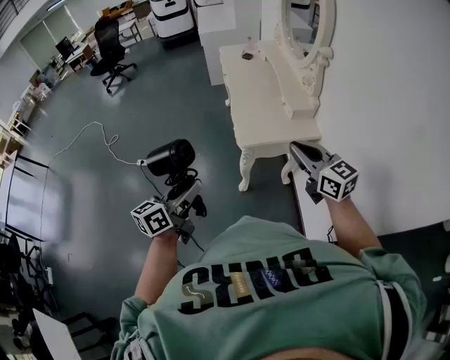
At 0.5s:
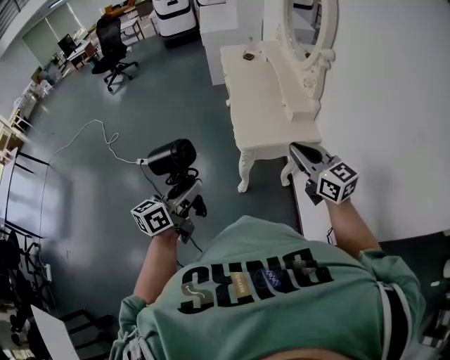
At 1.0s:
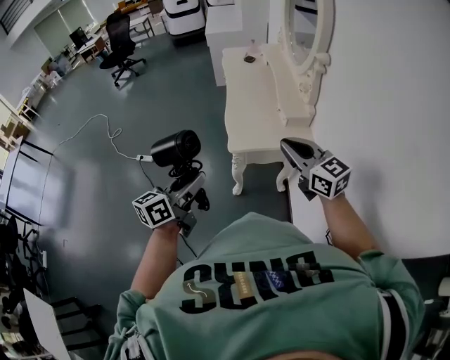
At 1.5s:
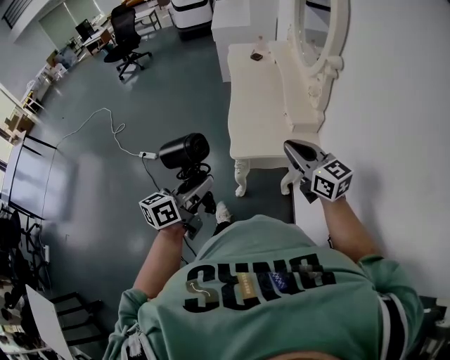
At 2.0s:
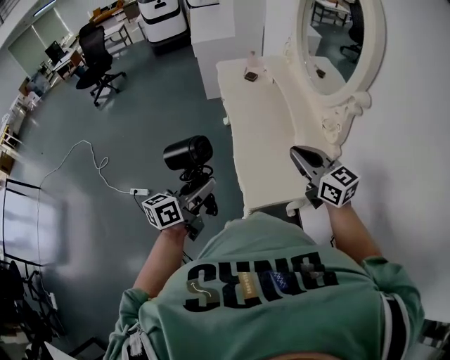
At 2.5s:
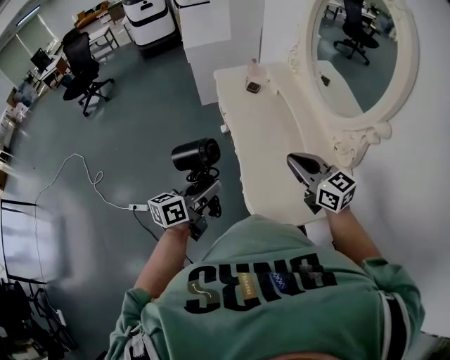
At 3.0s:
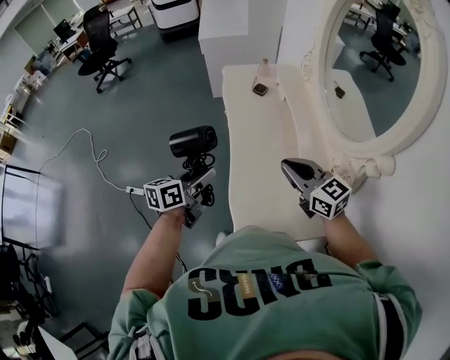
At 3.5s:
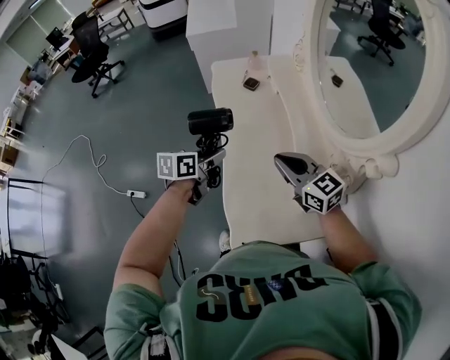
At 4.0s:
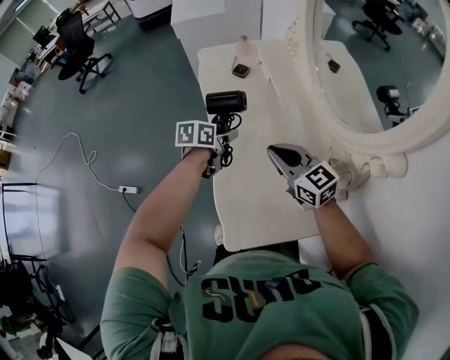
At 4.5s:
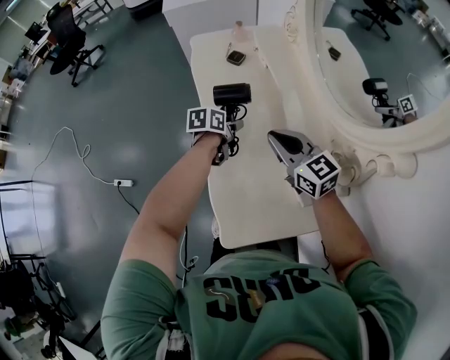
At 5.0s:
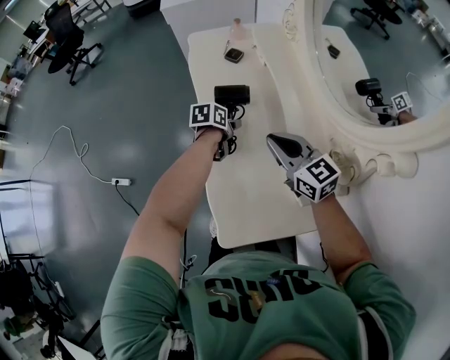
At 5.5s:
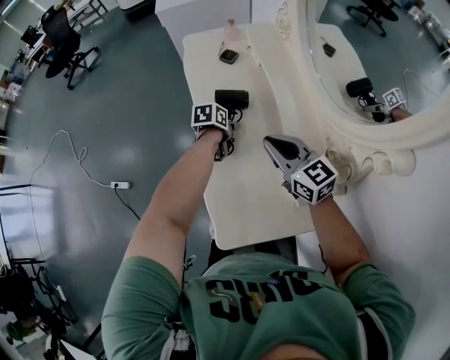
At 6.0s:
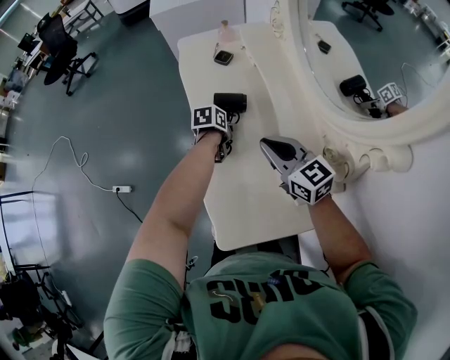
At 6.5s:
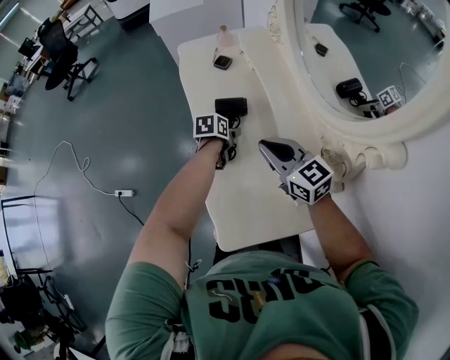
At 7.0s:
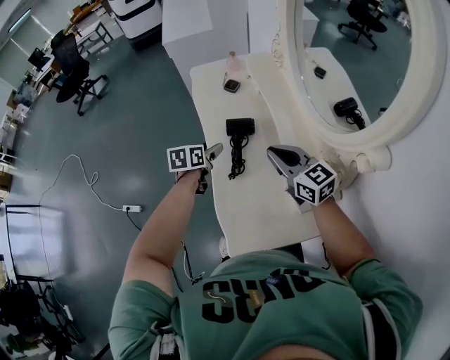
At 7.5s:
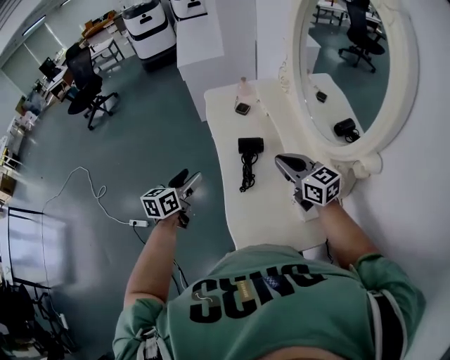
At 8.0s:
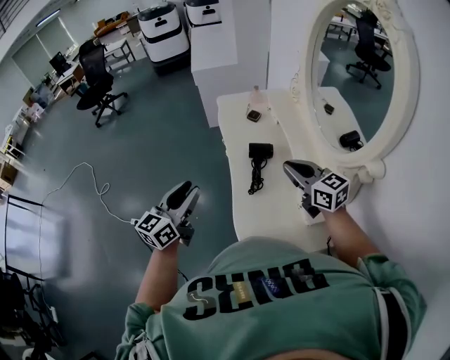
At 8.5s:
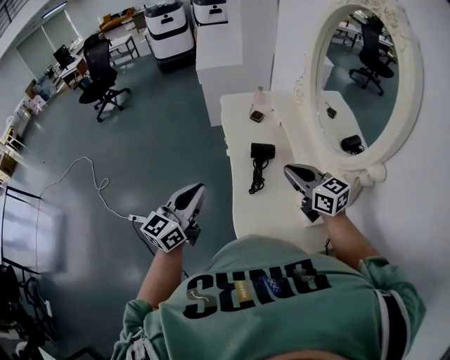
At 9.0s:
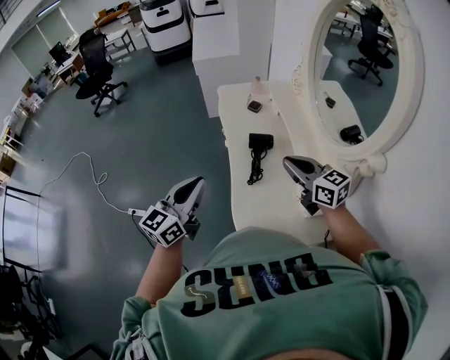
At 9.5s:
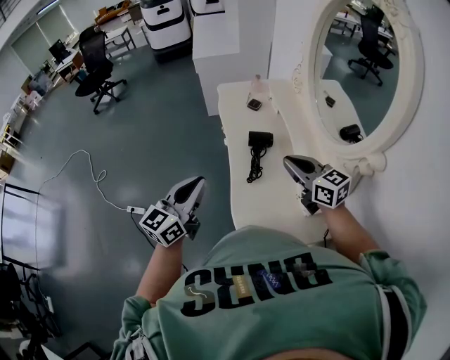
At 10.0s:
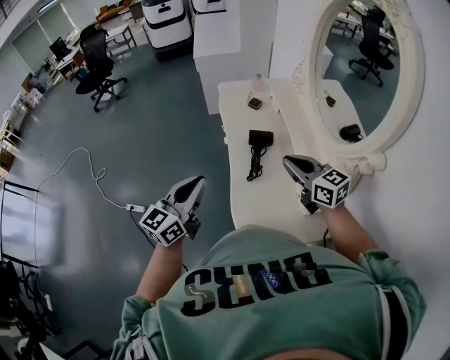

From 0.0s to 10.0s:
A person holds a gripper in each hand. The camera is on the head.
From 0.0s to 2.0s: Both grippers travel together forward, approximately 35 cm.
From 2.0s to 4.0s: The right gripper travels forward and downward by approximately 25 cm. The left gripper travels forward and downward by roughly 40 cm, and points its fingers some 30 degrees further downward.
From 4.0s to 6.0s: The left gripper shifts roughly 15 cm downward.
From 6.0s to 8.0s: The left gripper is displaced upward, to the left and backward by about 50 cm, tips its fingers upward by some 50 degrees, and opens and closes again, while the right gripper heads upward, covering about 15 cm.
From 8.0s to 10.0s: The left gripper shifts by approximately 5 cm, and closes.

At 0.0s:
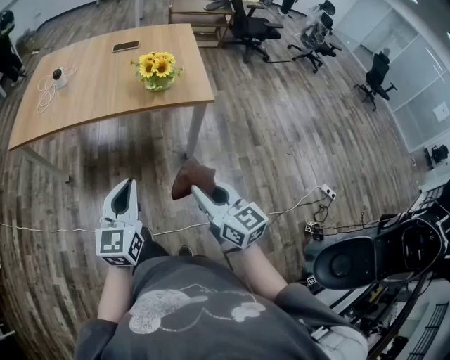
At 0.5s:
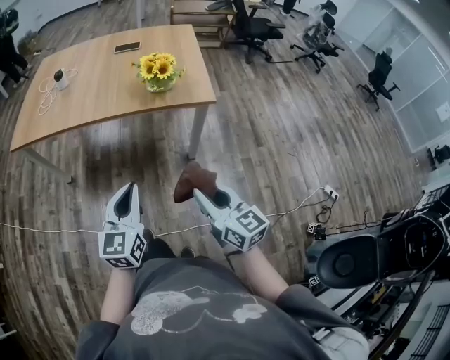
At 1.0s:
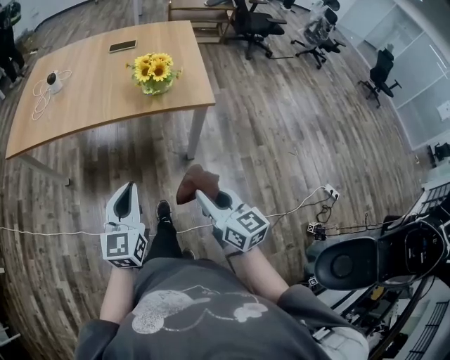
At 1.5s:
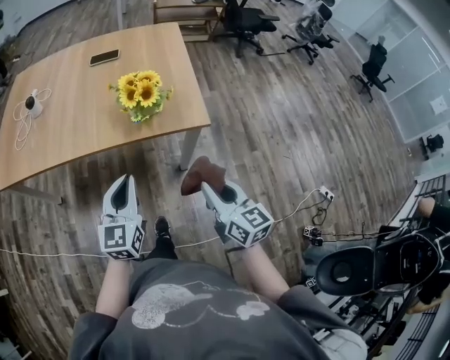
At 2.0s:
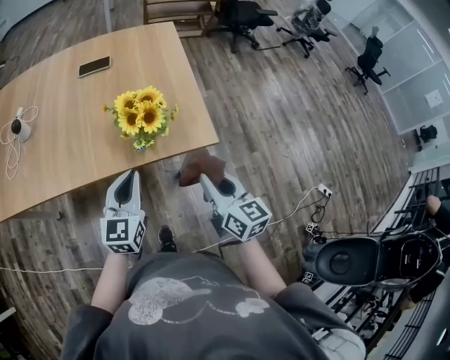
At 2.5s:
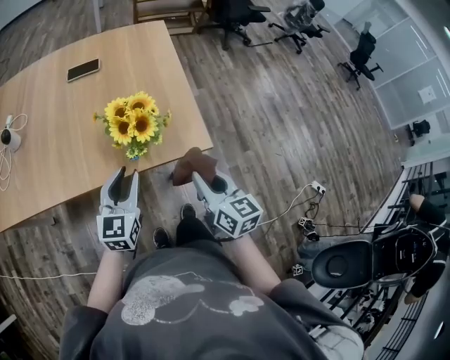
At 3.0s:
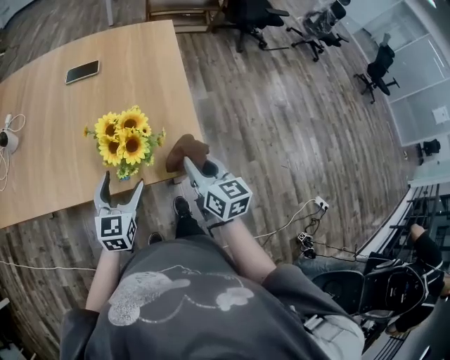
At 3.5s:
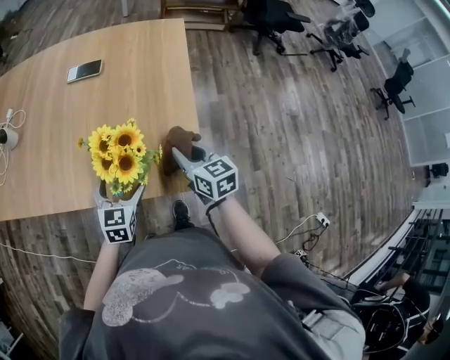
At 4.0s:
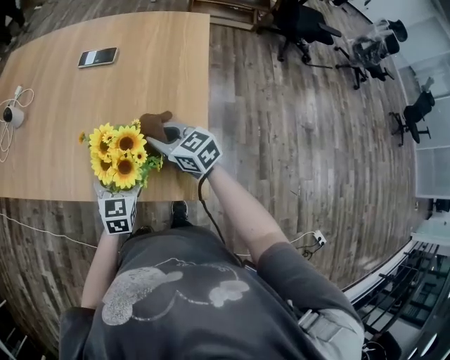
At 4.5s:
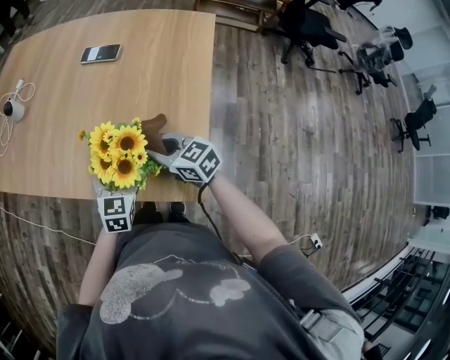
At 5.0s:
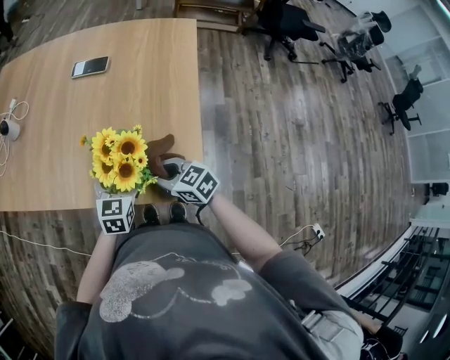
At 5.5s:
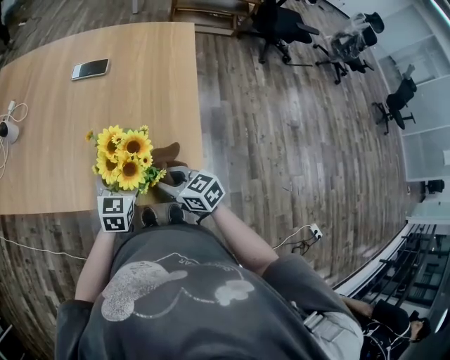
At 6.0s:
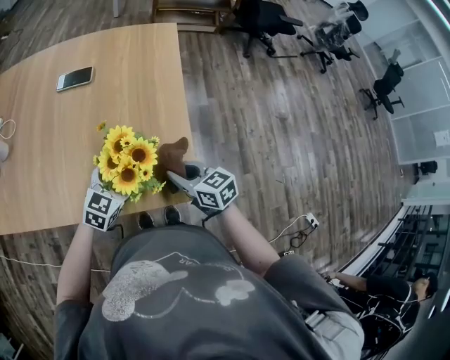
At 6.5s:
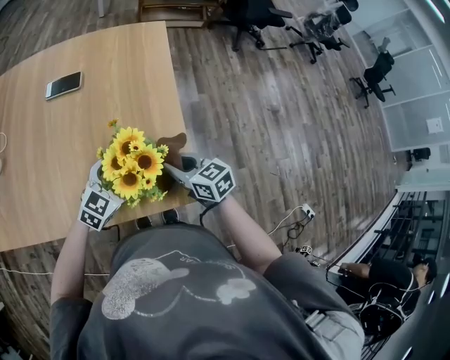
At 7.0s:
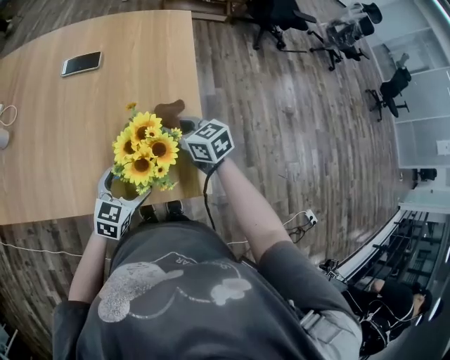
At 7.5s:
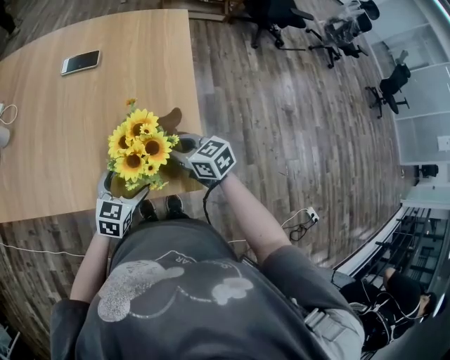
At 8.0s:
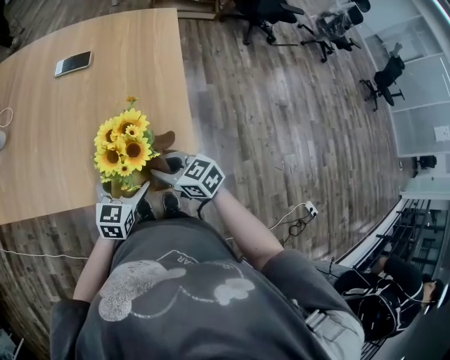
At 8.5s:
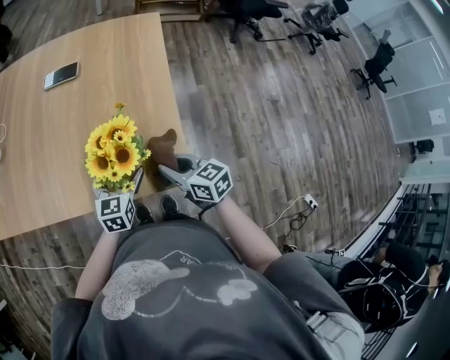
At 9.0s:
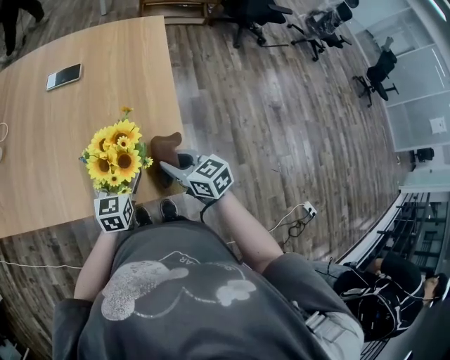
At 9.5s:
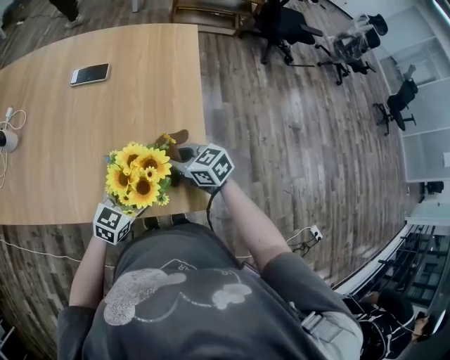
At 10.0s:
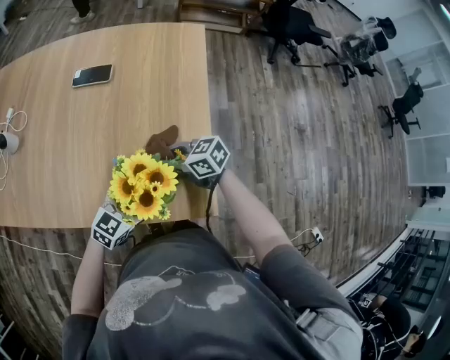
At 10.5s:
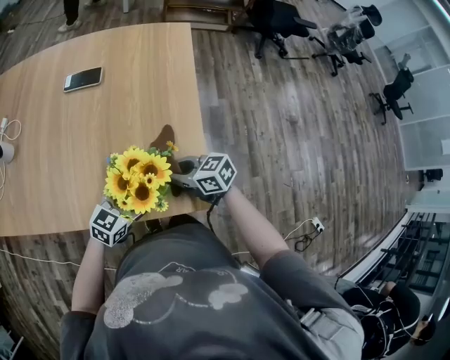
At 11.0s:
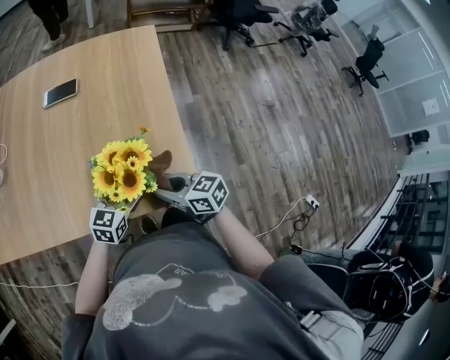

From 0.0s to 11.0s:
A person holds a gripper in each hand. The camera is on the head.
From 0.0s to 2.0s: Both grippers move forward, about 30 cm.
From 2.0s to 3.5s: The right gripper travels forward by roughly 25 cm, and swivels about 20 degrees. The left gripper goes approximately 20 cm forward and downward, changes its angle by some 20 degrees, and opens up.
From 3.5s to 5.5s: The right gripper shifts roughly 10 cm to the left, travels forward and back again, some 10 cm each way, and changes its angle by roughly 30 degrees.
From 5.5s to 7.5s: The left gripper ends up roughly 5 cm from where it was.
From 7.5s to 9.0s: The left gripper shifts by approximately 5 cm. The right gripper moves about 5 cm.

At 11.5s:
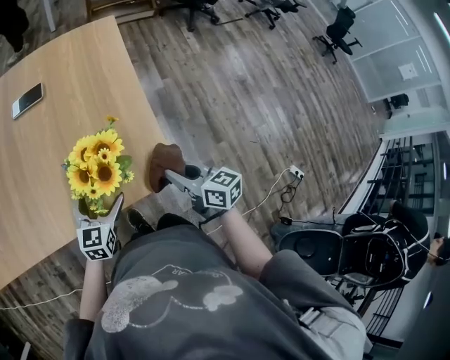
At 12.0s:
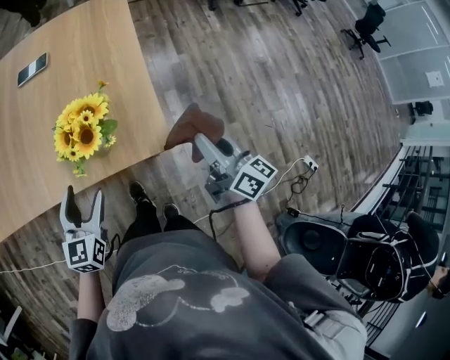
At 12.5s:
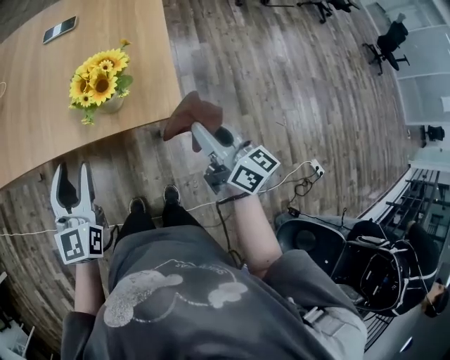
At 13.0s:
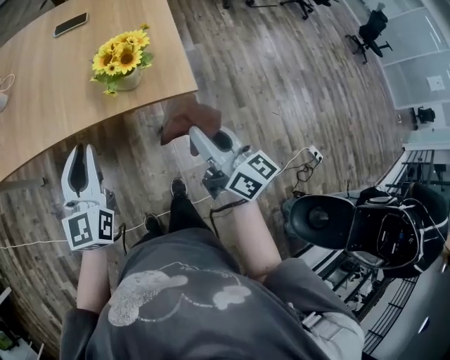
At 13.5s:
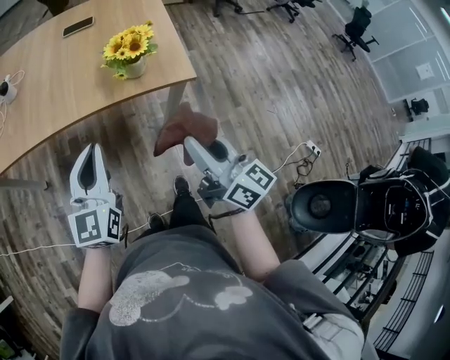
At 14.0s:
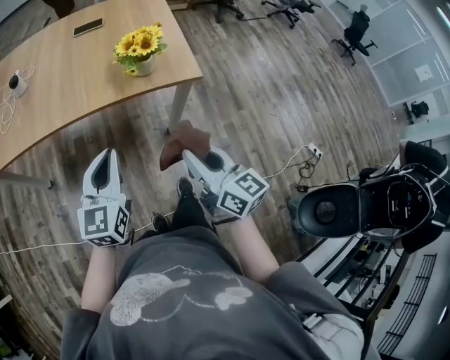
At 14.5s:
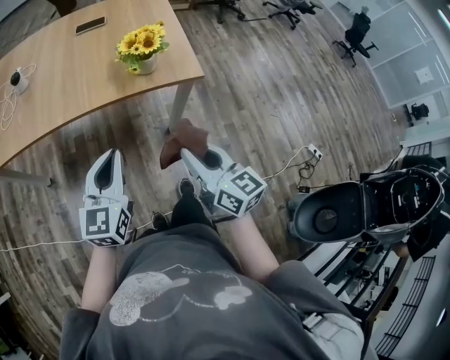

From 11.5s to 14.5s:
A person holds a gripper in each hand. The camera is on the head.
From 11.5s to 13.0s: The left gripper heads upward, backward and to the left, covering roughly 30 cm, swivels about 30 degrees, and closes. The right gripper shifts about 25 cm backward and upward, and turns by some 20 degrees.
From 13.0s to 14.5s: The left gripper is displaced backward by roughly 15 cm; the right gripper shifts some 20 cm backward and to the left.

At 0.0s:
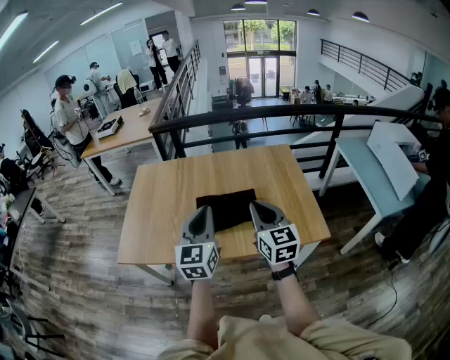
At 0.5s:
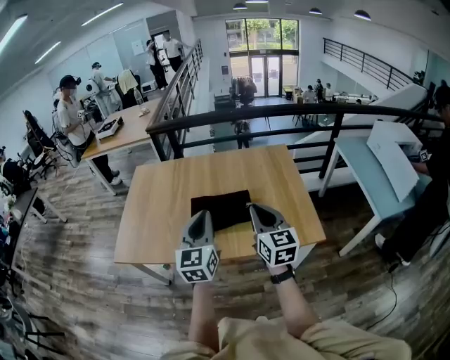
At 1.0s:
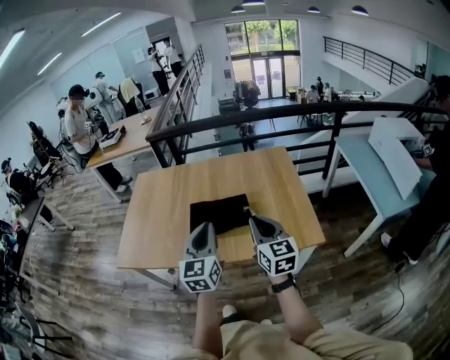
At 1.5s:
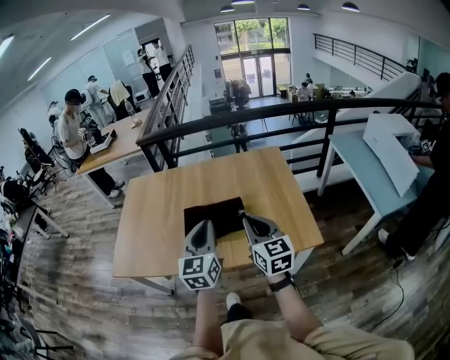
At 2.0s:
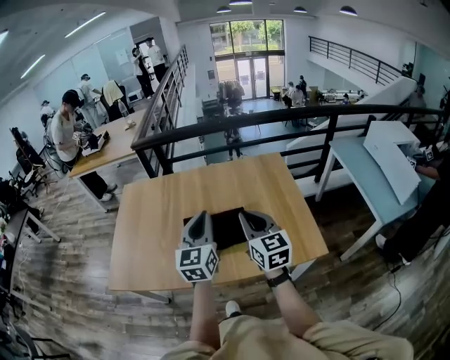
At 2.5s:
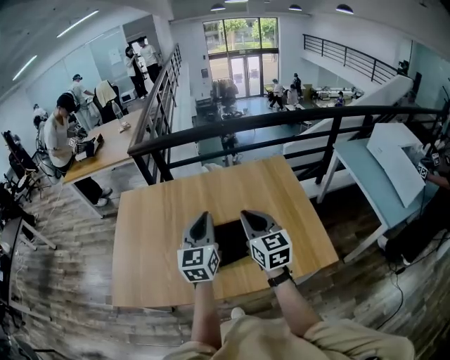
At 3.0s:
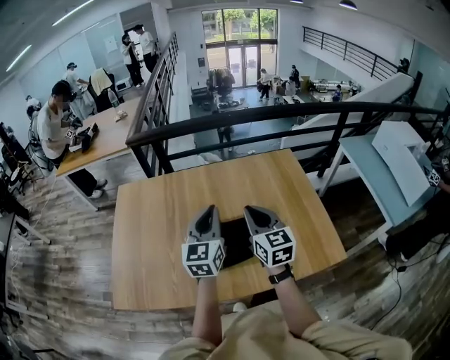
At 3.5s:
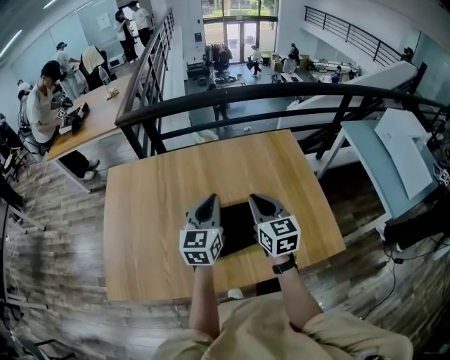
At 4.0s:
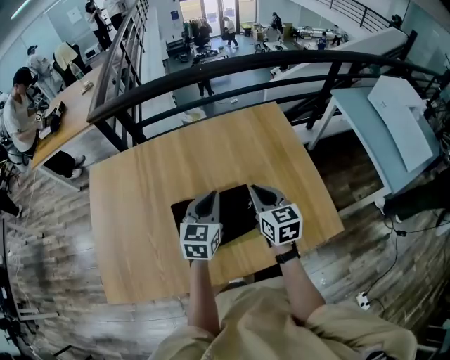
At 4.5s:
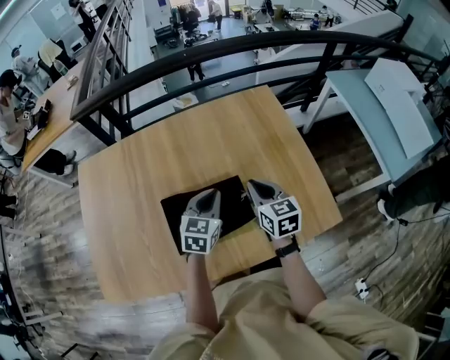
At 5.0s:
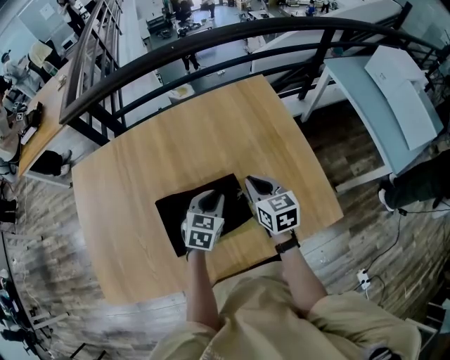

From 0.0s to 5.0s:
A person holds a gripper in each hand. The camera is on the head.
From 0.0s to 2.5s: The grippers both shift forward by some 20 cm.
From 2.5s to 5.0s: Both grippers travel together downward and forward, some 30 cm. The right gripper rotates about 30 degrees, while the left gripper angles its fingers downward, by about 40 degrees.
